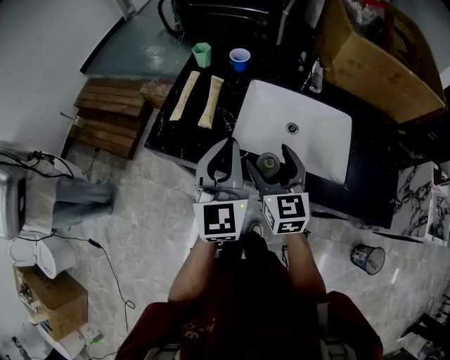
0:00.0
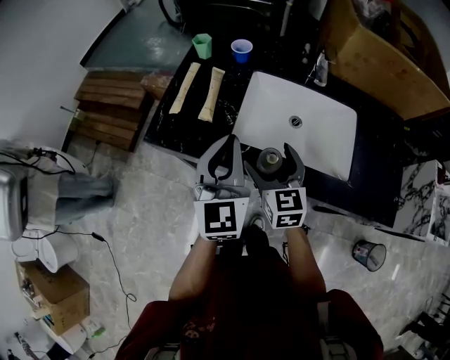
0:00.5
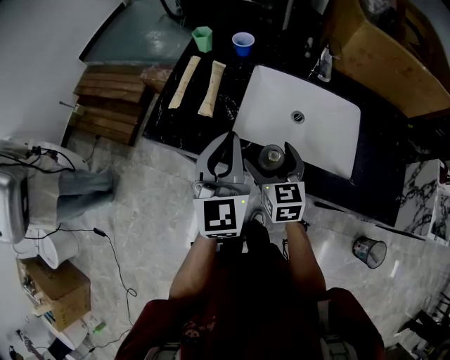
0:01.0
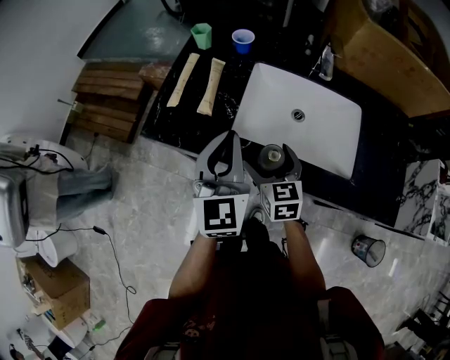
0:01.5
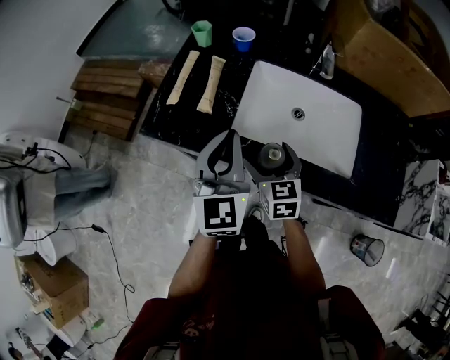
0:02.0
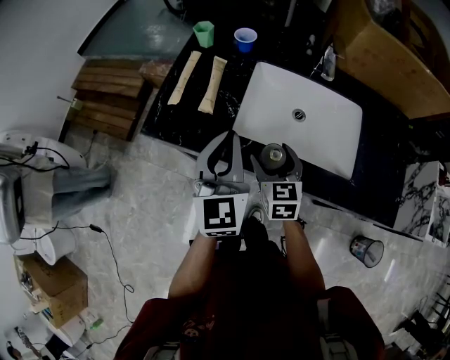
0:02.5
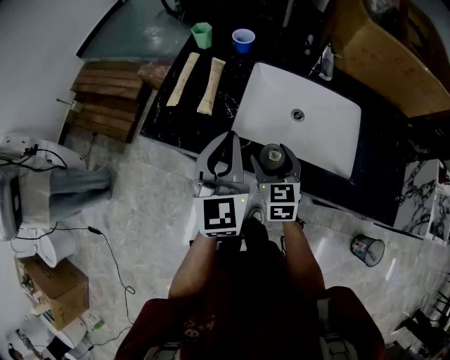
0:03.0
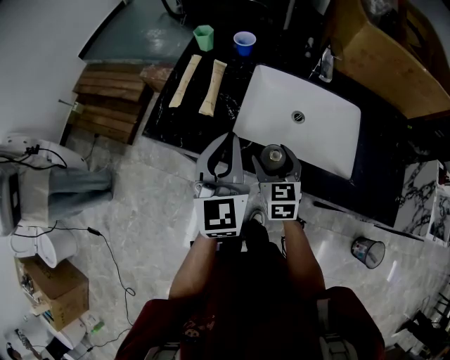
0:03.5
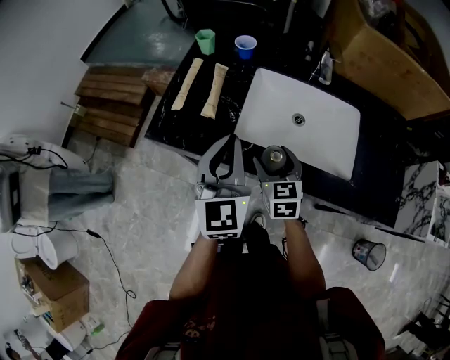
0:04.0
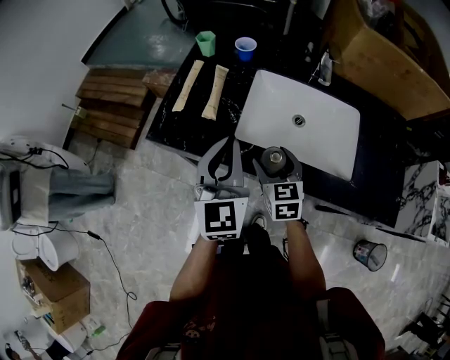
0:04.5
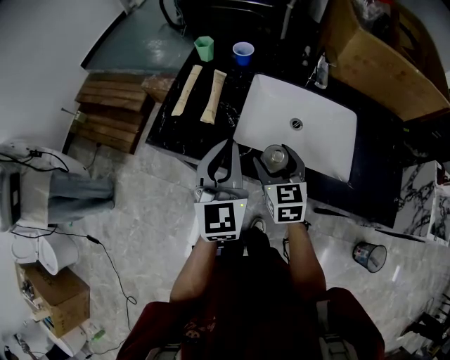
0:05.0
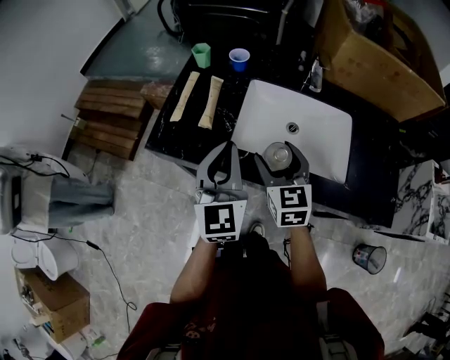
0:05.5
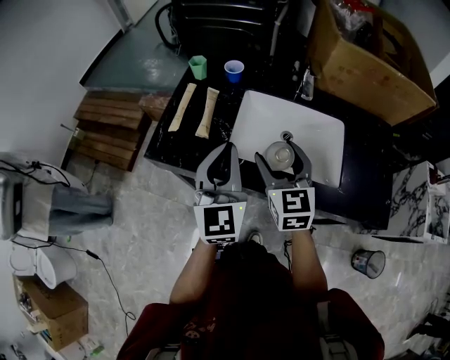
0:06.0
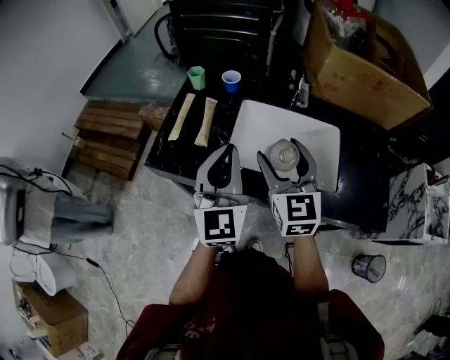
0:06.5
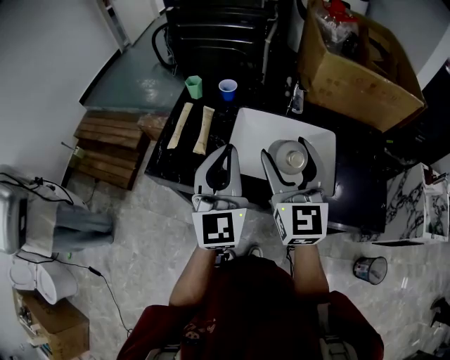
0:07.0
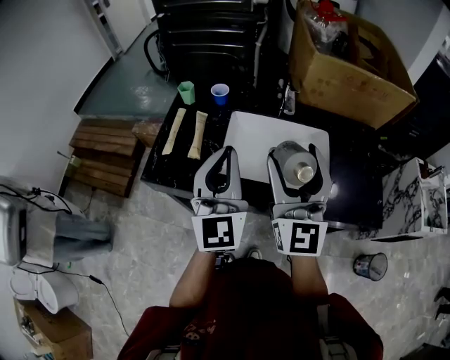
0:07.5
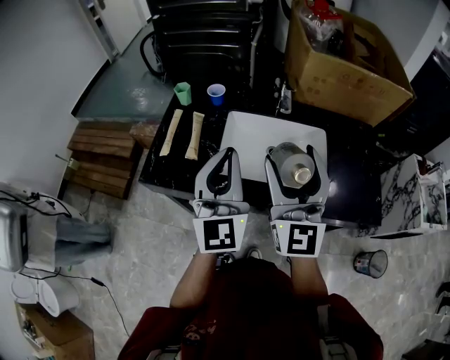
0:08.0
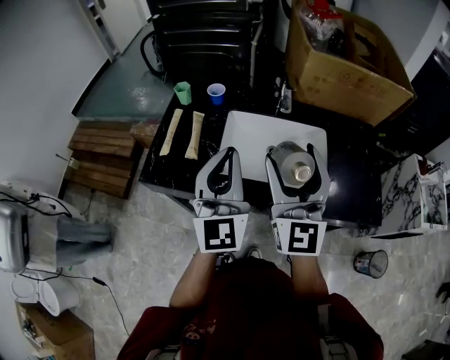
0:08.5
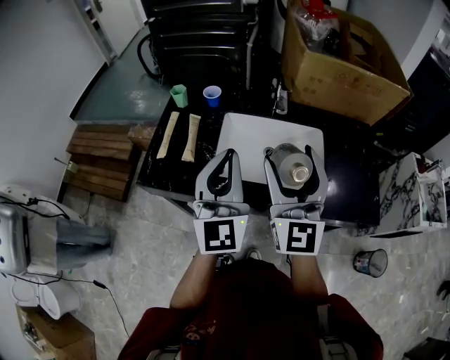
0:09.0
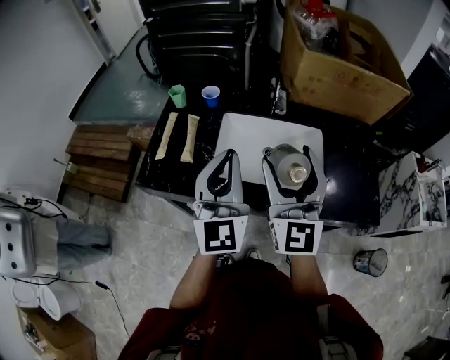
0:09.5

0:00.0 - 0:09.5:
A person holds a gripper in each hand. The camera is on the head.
0:00.0 - 0:02.0: The right gripper is displaced downward by some 10 cm.
0:02.0 - 0:04.0: The grippers move only a little.
0:04.0 - 0:05.5: The right gripper moves upward, approximately 10 cm.
0:05.5 - 0:07.5: The left gripper moves upward, roughly 10 cm, while the right gripper is displaced upward by roughly 20 cm, and tips its fingers upward by about 40 degrees.
0:07.5 - 0:09.5: The grippers stay close to where they were, moving slightly.

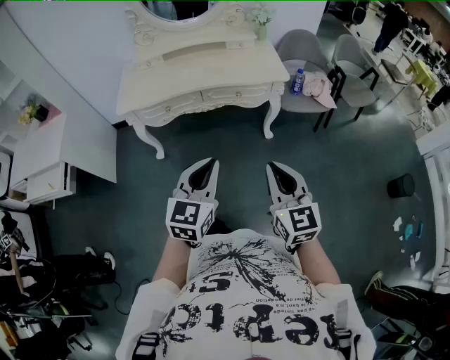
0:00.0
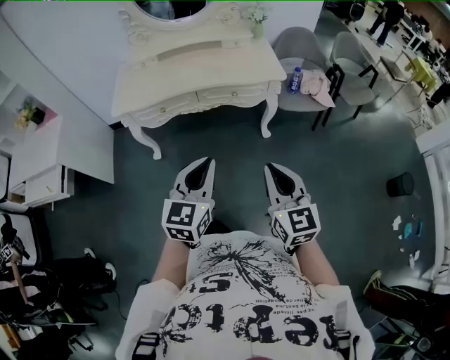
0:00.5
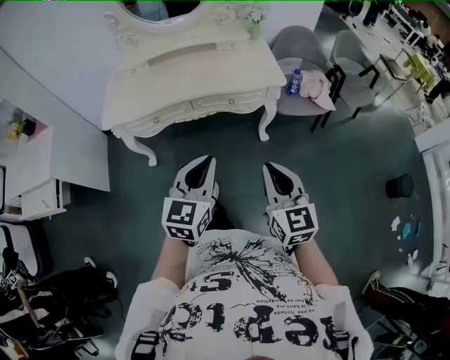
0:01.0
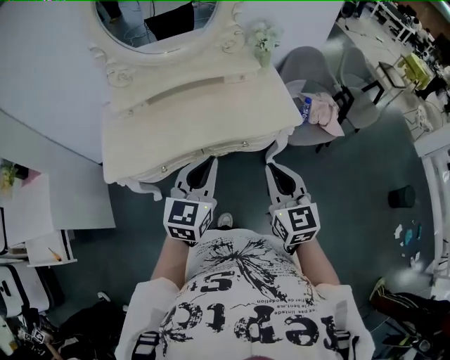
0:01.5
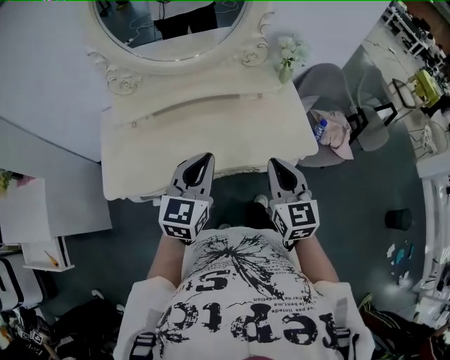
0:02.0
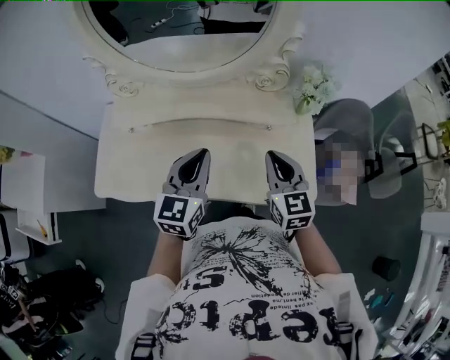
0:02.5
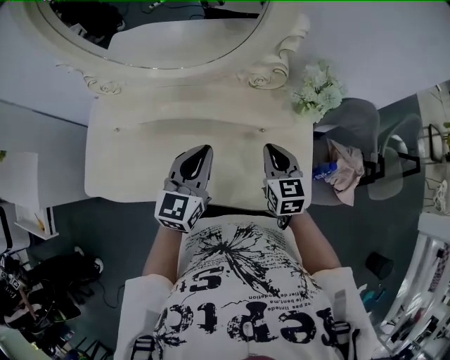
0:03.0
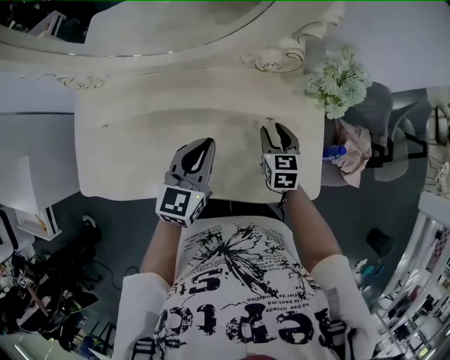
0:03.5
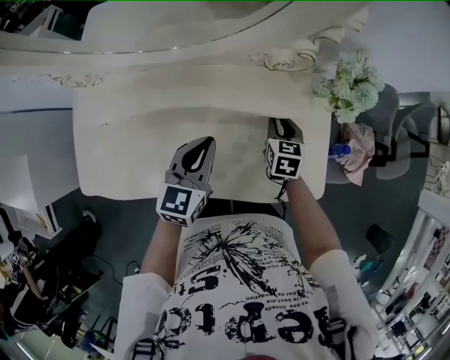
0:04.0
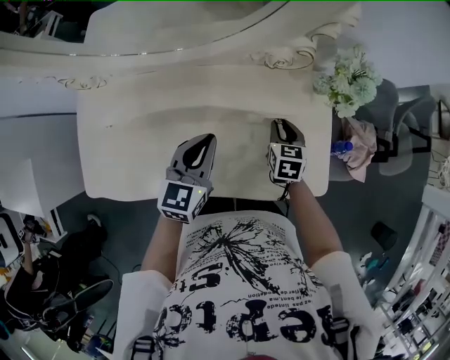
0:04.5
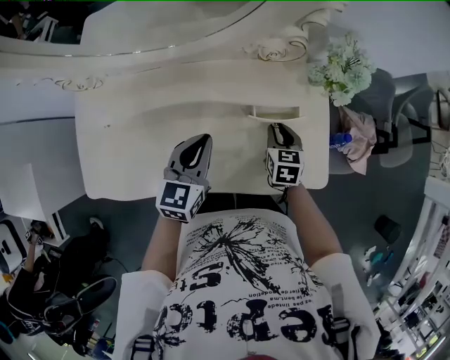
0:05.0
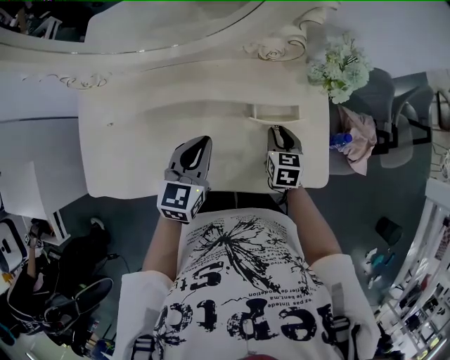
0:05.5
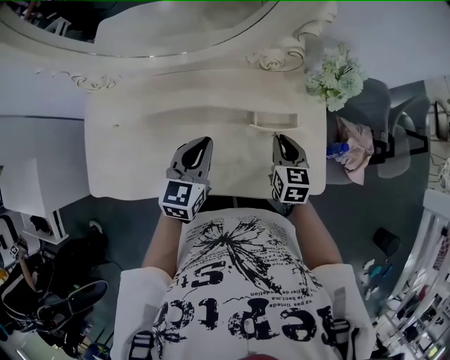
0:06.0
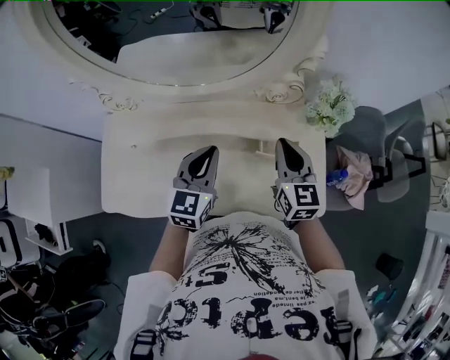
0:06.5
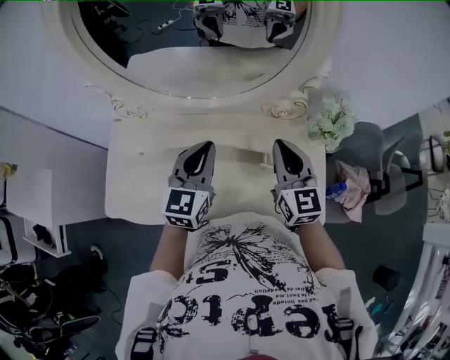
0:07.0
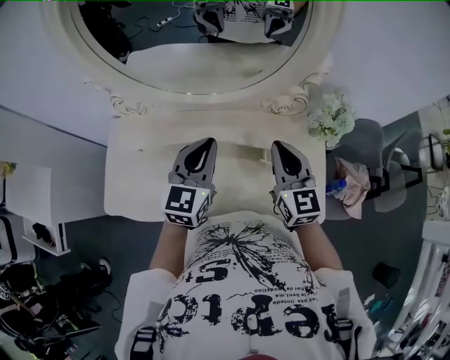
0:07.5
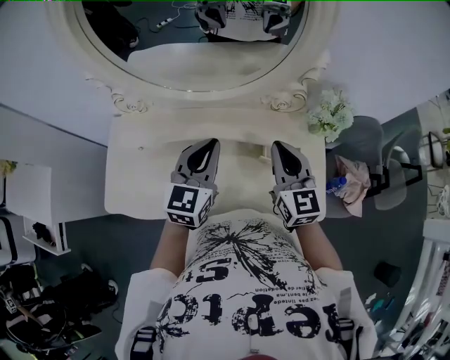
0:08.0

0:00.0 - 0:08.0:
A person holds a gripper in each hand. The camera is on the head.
0:00.0 - 0:02.0: Both grippers are carried forward, some 50 cm.
0:02.0 - 0:04.0: The left gripper moves forward and downward, some 30 cm, while the right gripper shifts some 40 cm forward and downward, changes its angle by some 30 degrees, and opens its fingers.
0:04.0 - 0:06.0: The right gripper heads backward and upward, covering approximately 10 cm.
0:06.0 - 0:08.0: The left gripper heads upward, covering approximately 15 cm. Meanwhile the right gripper heads upward and to the left, covering some 20 cm, and swivels about 30 degrees.

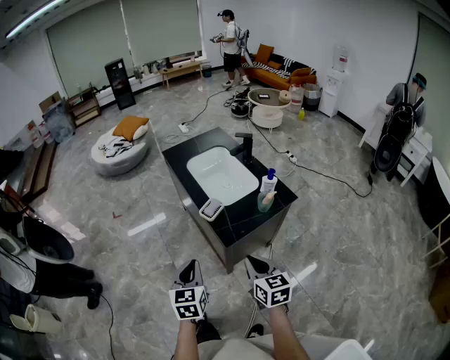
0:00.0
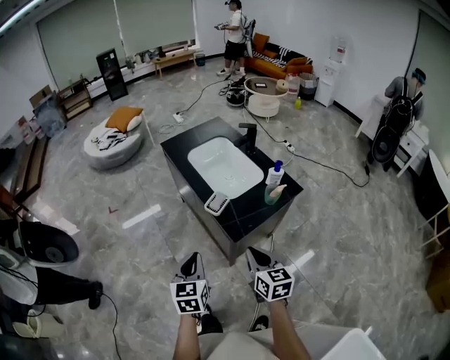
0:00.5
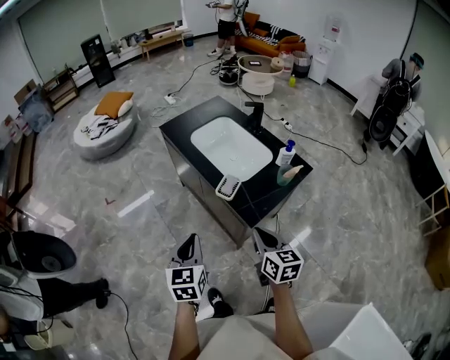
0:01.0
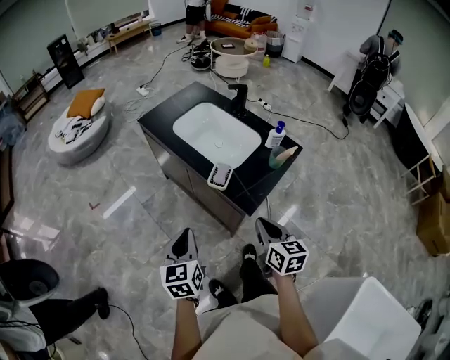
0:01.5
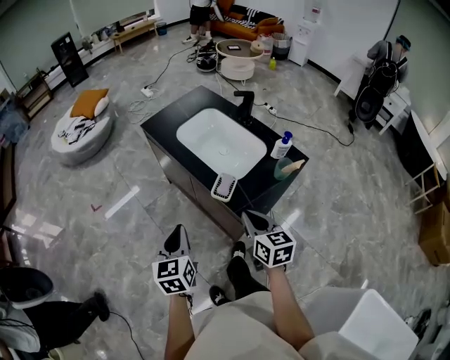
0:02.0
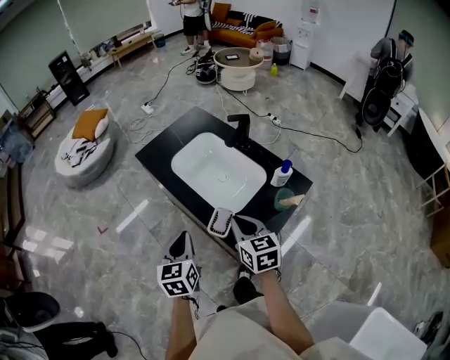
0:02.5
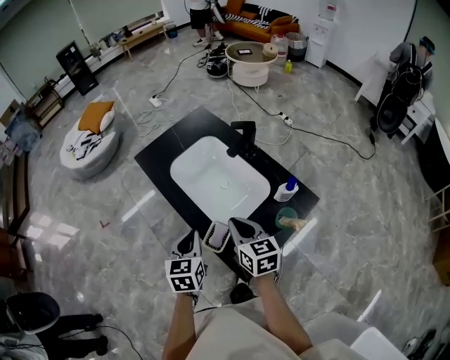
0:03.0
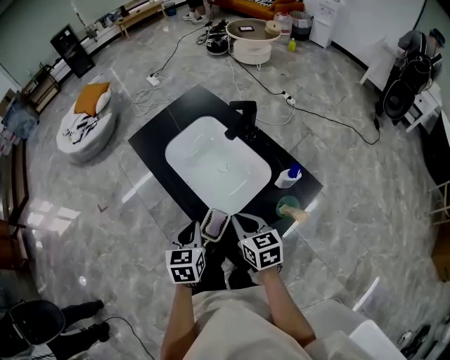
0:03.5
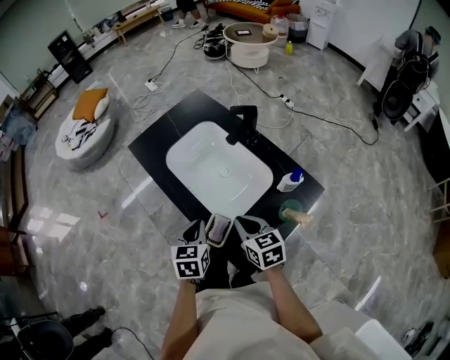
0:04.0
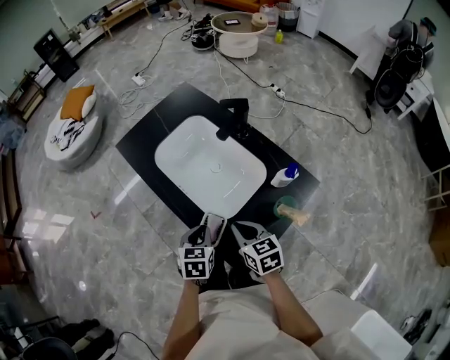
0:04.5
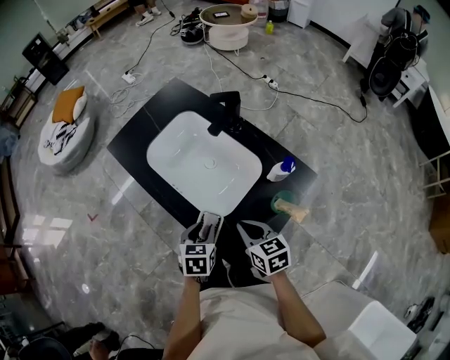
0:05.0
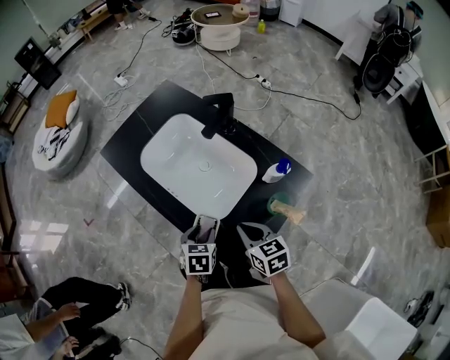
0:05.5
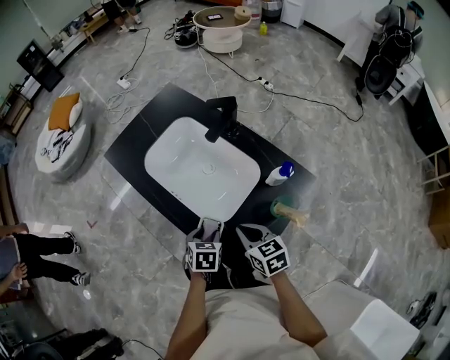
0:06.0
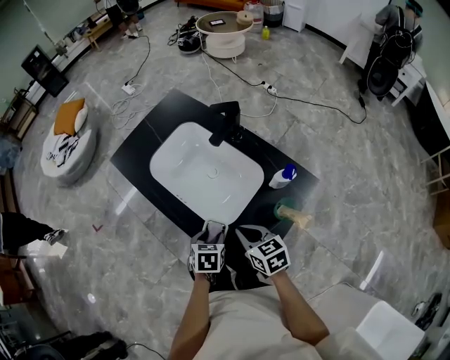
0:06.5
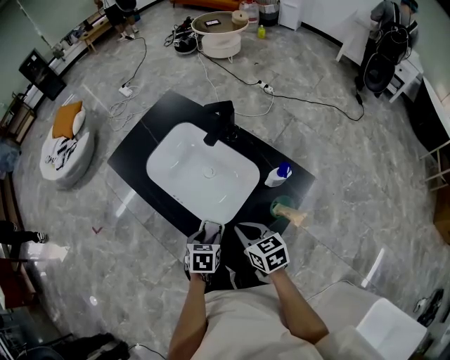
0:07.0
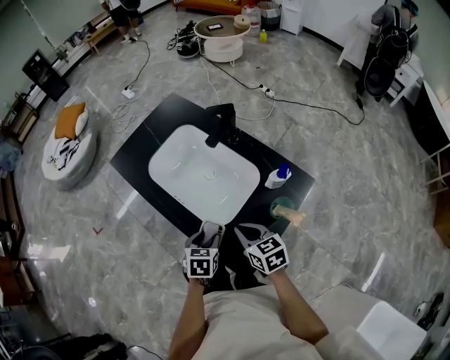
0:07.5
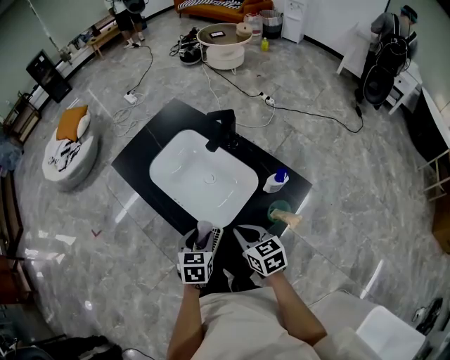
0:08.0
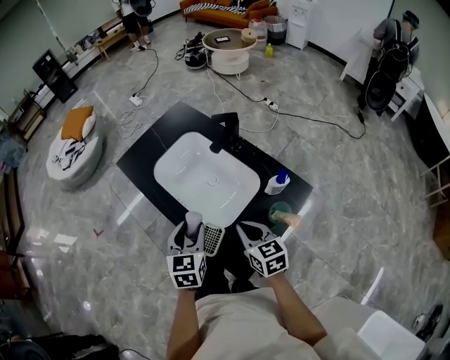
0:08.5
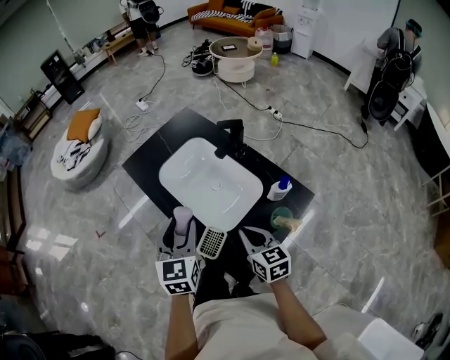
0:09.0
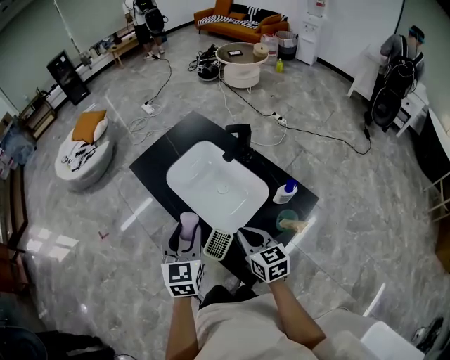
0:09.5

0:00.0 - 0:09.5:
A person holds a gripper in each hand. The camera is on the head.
0:00.0 - 0:02.0: Both grippers travel together forward and to the left, some 20 cm.
0:02.0 - 0:04.0: The right gripper heads forward and downward, covering some 15 cm. Meanwhile the left gripper shifts roughly 25 cm forward, to the right and downward.
0:04.0 - 0:05.5: The left gripper heads downward, covering some 10 cm, and opens, while the right gripper moves roughly 5 cm.
0:05.5 - 0:07.5: There are only small adjustments of the grippers.
0:07.5 - 0:09.5: The right gripper travels upward by some 5 cm. The left gripper heads upward, covering roughly 20 cm, and angles its fingers upward, by approximately 30 degrees.
